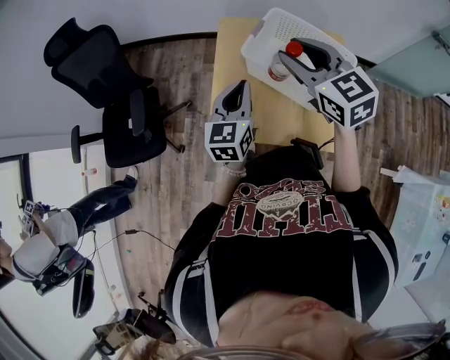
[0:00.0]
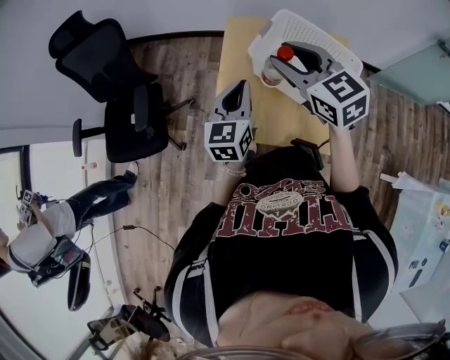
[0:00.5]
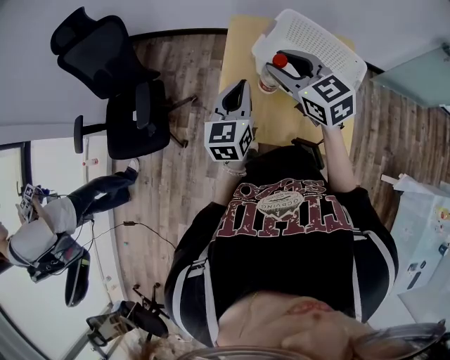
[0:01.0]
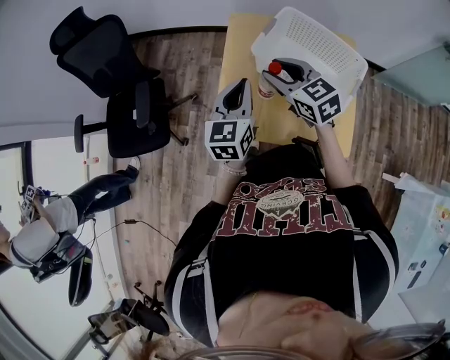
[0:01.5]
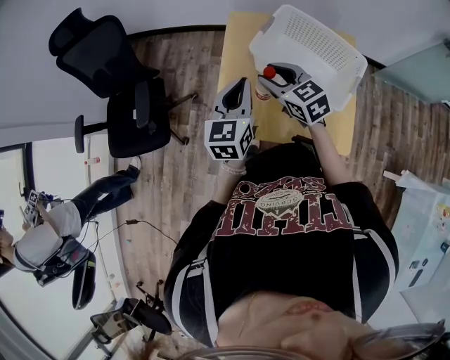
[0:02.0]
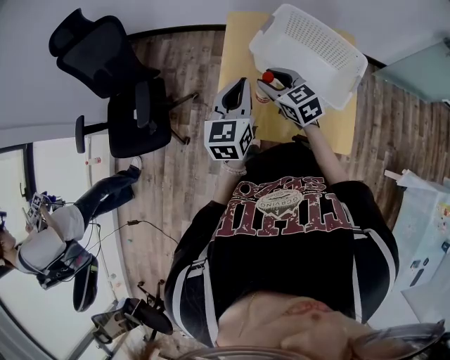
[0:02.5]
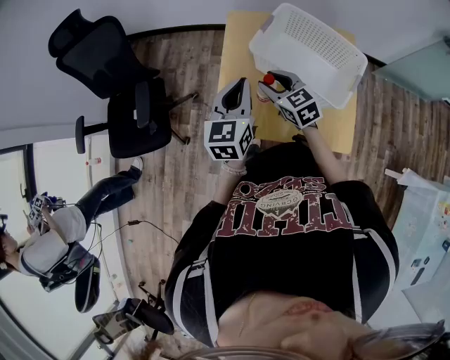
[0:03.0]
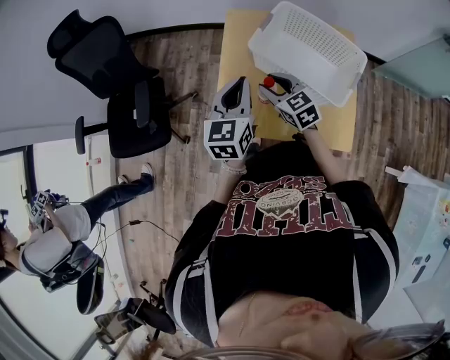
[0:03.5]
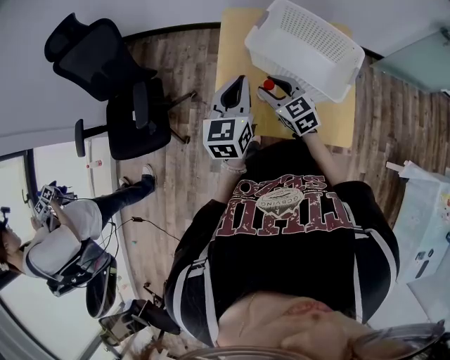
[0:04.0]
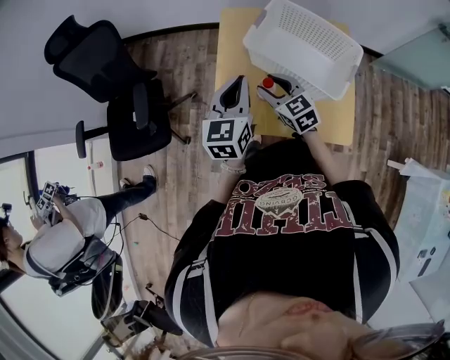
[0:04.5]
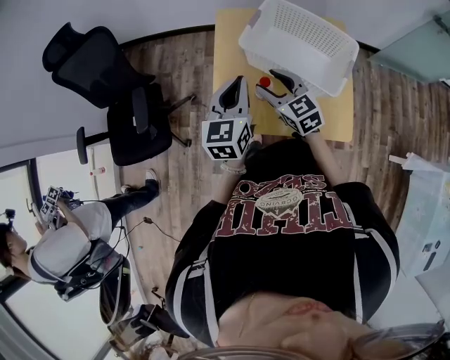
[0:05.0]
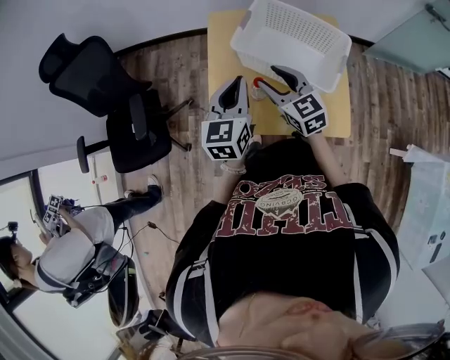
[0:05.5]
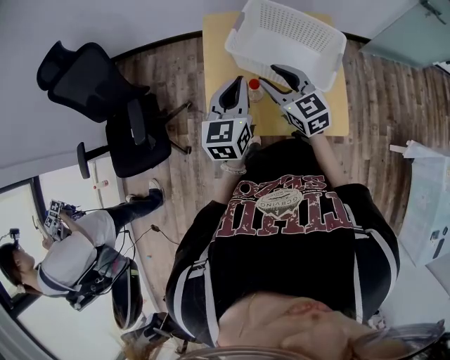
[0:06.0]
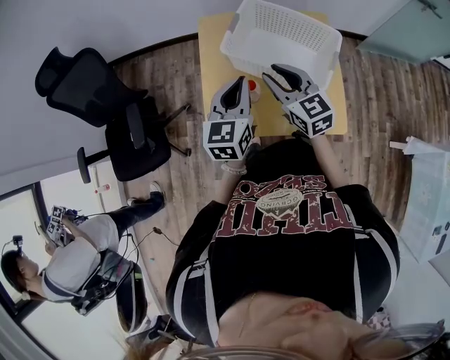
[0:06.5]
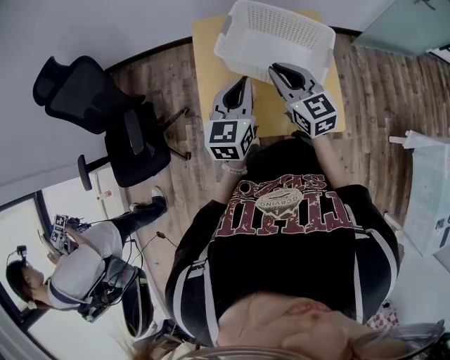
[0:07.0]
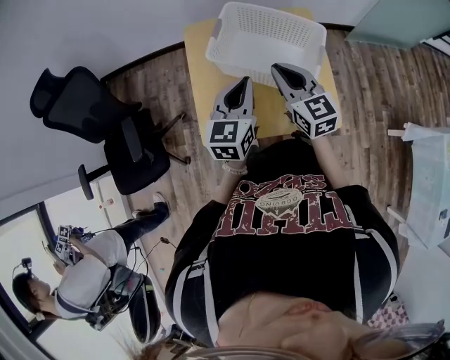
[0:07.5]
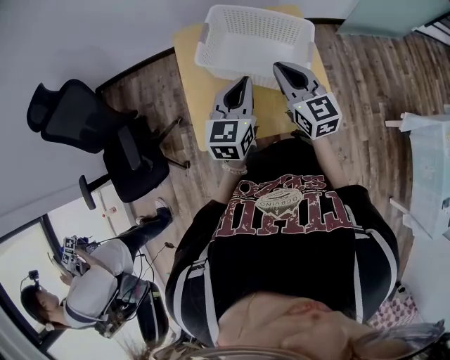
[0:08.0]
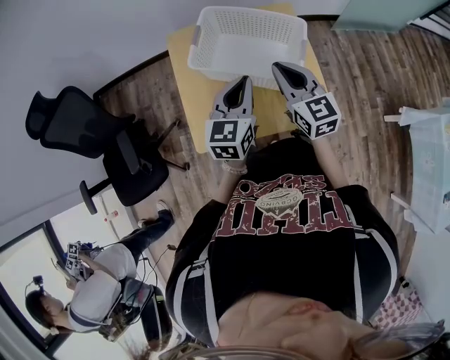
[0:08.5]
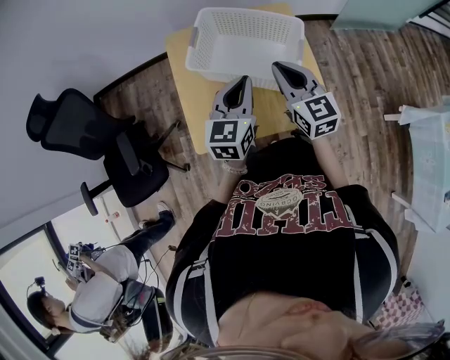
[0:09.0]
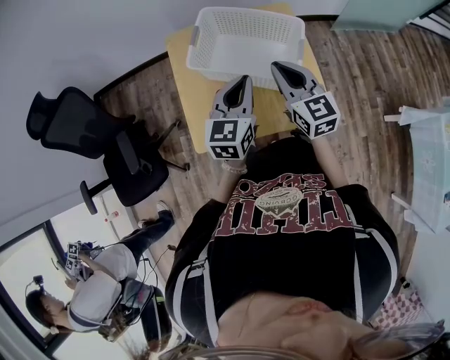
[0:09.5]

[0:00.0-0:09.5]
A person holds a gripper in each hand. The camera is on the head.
0:00.0 to 0:02.0: The right gripper is displaced downward by approximately 15 cm.
0:02.0 to 0:04.0: The right gripper is displaced downward by approximately 5 cm.
0:04.0 to 0:05.5: The right gripper shifts some 5 cm upward.
0:05.5 to 0:07.5: The two grippers go some 10 cm to the right. The right gripper closes up.
0:07.5 to 0:09.5: The two grippers go roughly 5 cm to the right.

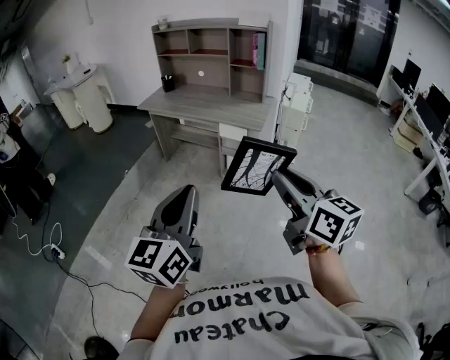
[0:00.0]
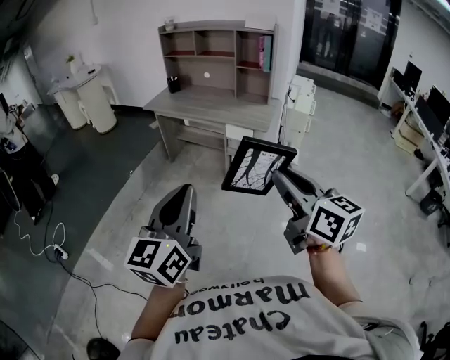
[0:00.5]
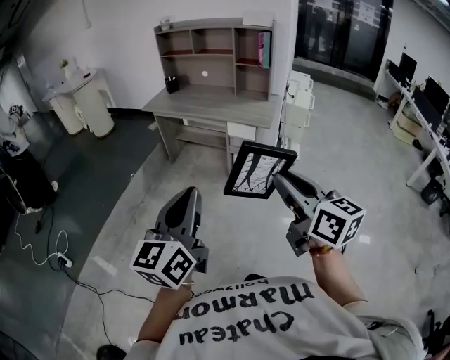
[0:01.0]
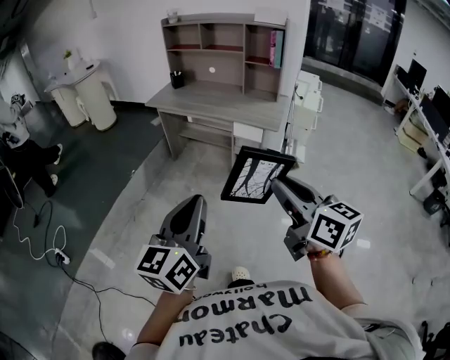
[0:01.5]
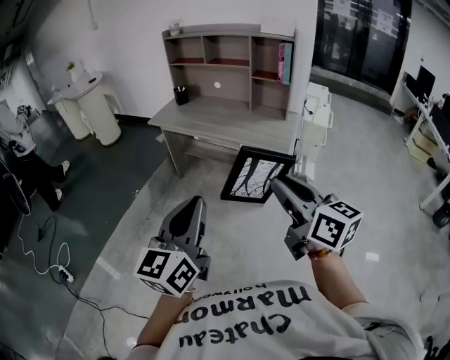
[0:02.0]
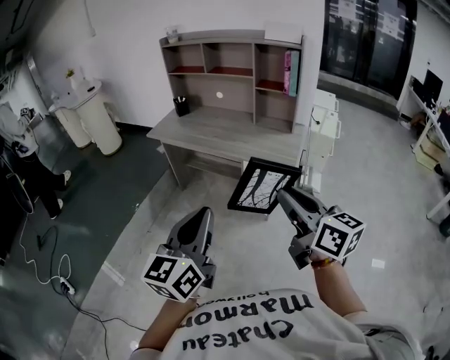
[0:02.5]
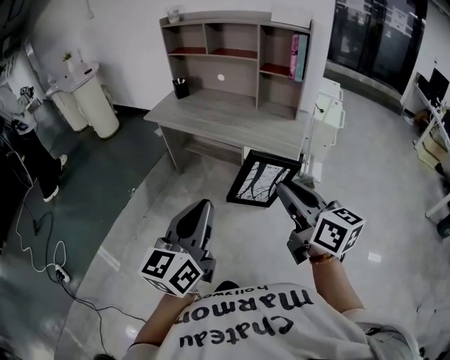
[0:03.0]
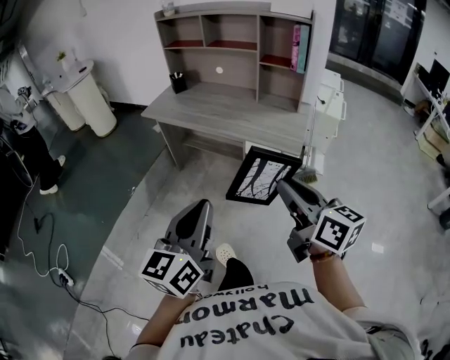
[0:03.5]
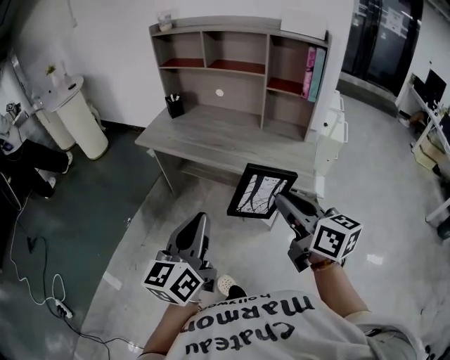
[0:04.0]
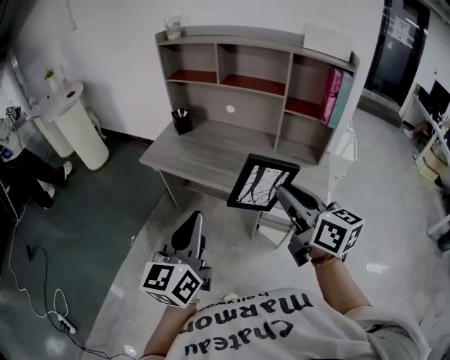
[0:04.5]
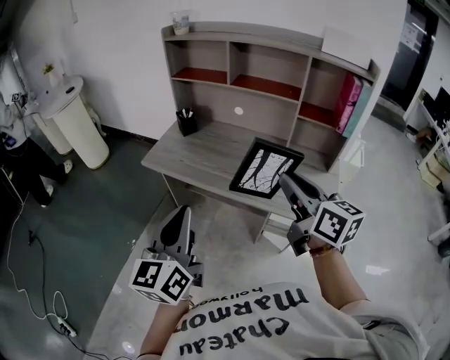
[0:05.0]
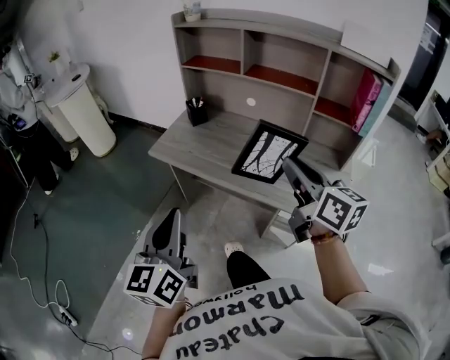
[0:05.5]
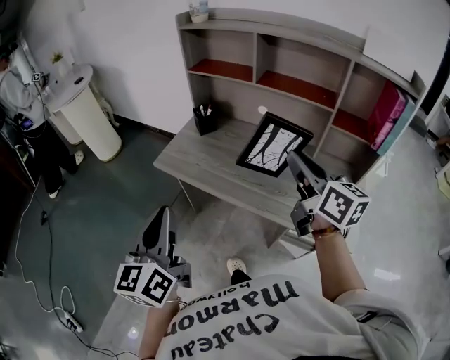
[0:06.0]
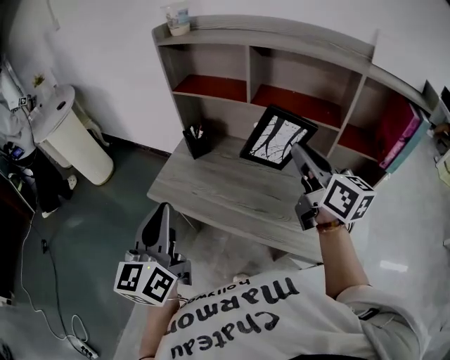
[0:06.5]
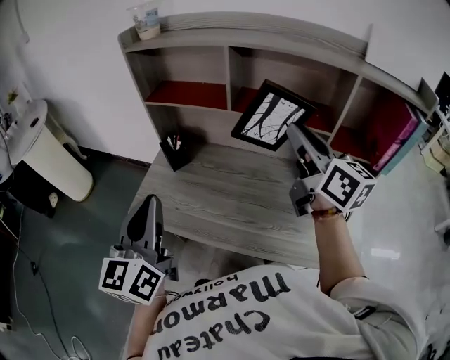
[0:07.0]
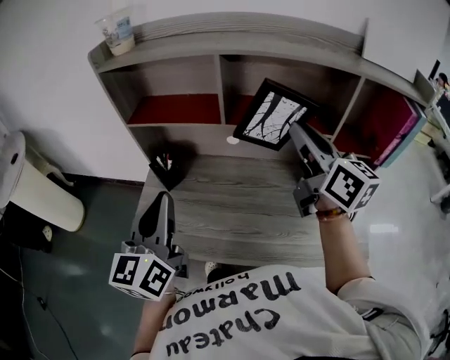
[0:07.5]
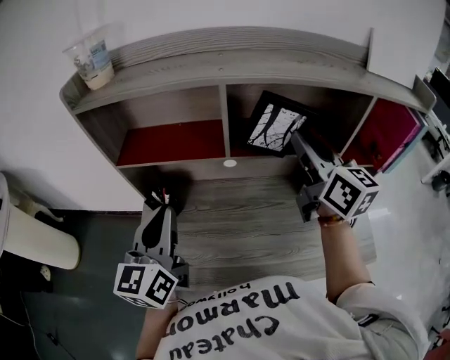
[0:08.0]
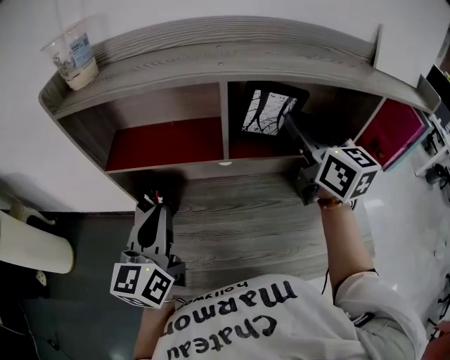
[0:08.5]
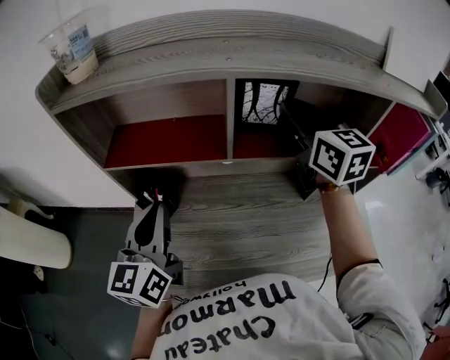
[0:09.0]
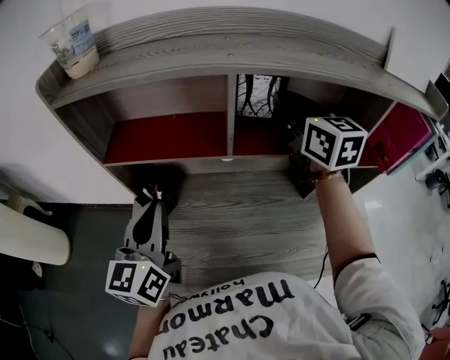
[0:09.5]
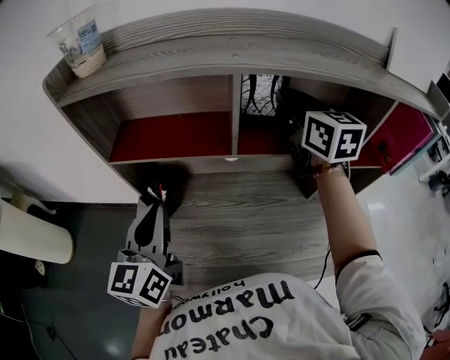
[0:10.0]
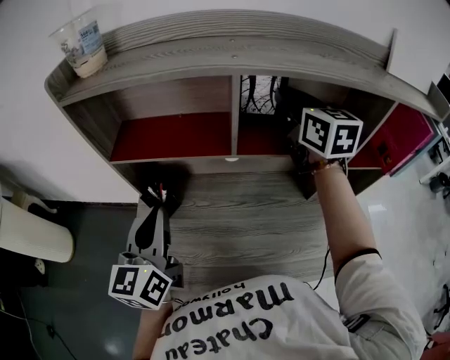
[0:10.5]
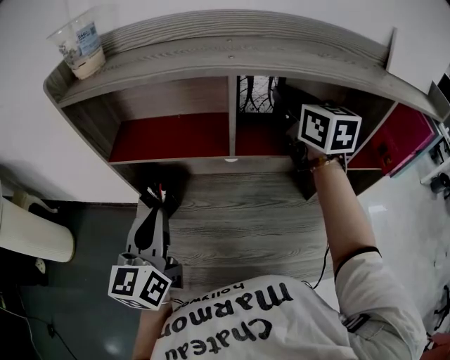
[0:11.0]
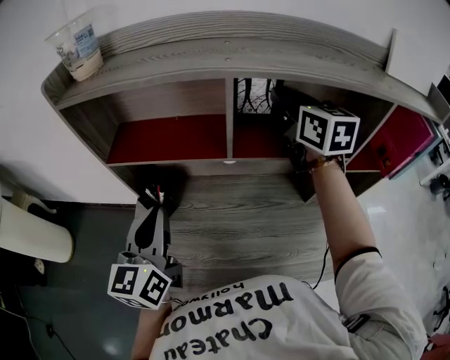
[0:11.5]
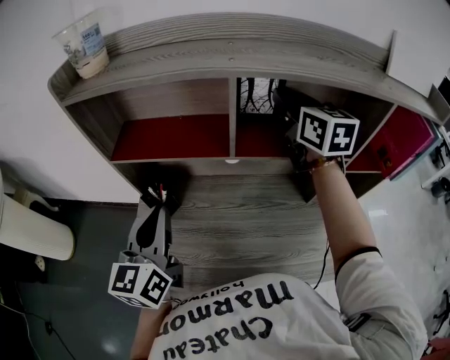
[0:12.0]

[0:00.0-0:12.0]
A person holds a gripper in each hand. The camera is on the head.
0:00.0 to 0:02.0: The right gripper goes about 5 cm forward.
0:02.0 to 0:04.0: The left gripper shifts by approximately 5 cm, while the right gripper shifts by approximately 5 cm.
0:04.0 to 0:06.0: The left gripper travels to the left by roughly 10 cm, and changes its angle by approximately 20 degrees, while the right gripper is displaced forward and upward by roughly 15 cm.
0:06.0 to 0:08.0: The left gripper moves some 10 cm backward and comes back, and rotates roughly 30 degrees.
0:08.0 to 0:10.0: The right gripper heads forward, covering approximately 10 cm.
0:10.0 to 0:12.0: The grippers make only small movements.

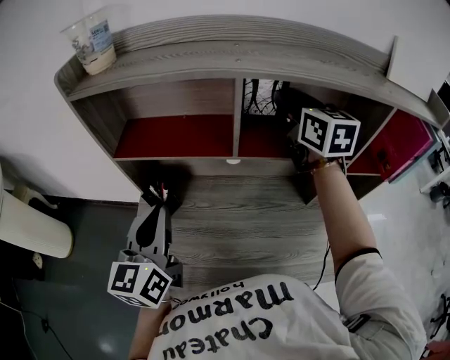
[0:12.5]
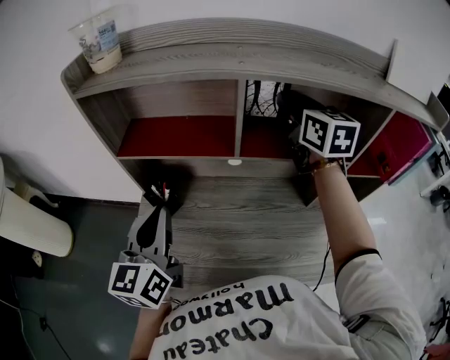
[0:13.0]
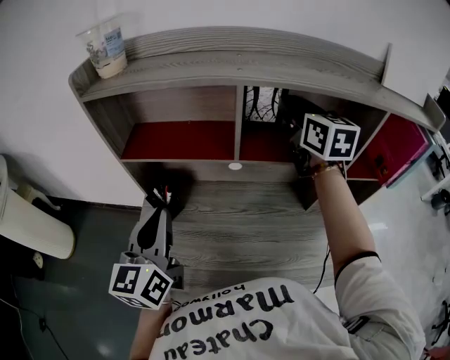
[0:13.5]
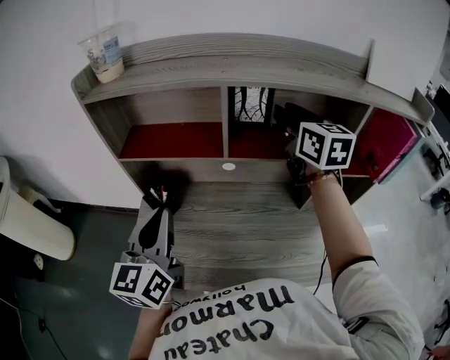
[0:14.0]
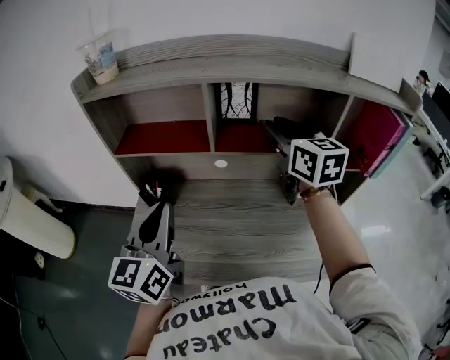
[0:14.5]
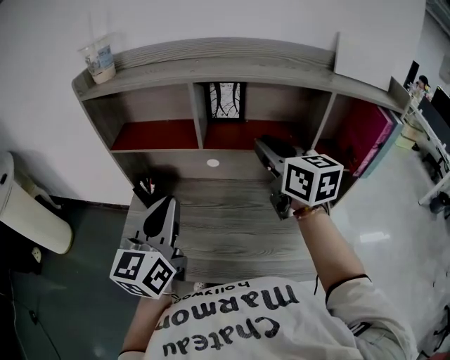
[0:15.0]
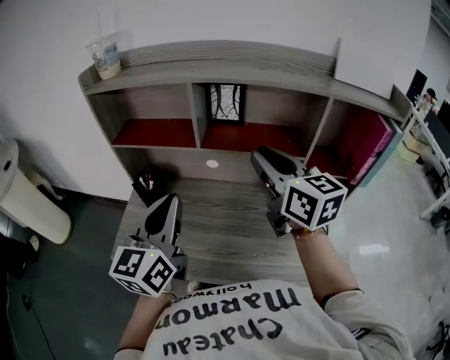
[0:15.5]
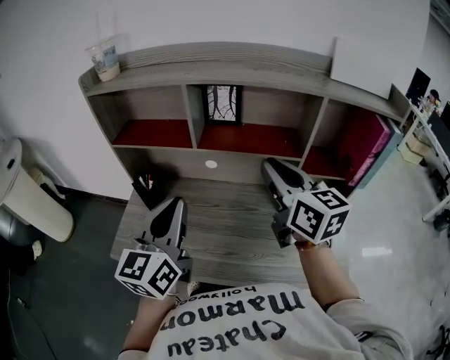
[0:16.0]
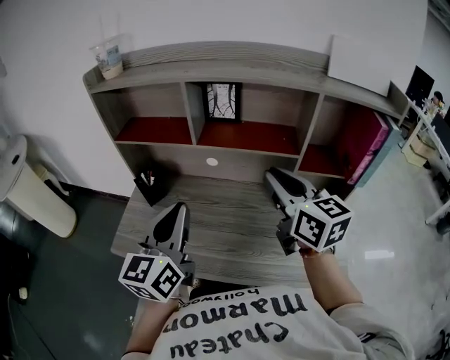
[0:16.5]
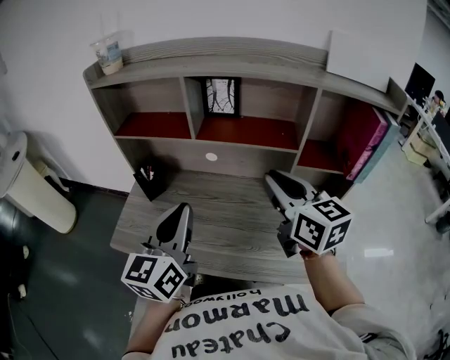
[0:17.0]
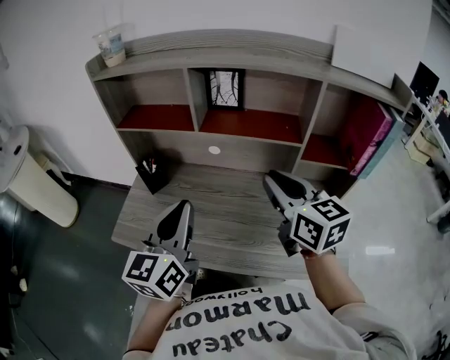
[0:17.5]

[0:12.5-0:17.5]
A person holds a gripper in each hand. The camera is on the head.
0:12.5 to 0:15.0: The right gripper heads backward, covering approximately 15 cm. Meanwhile the left gripper heads to the right and backward, covering approximately 15 cm.
0:15.0 to 0:17.5: The right gripper is displaced backward by roughly 10 cm, while the left gripper heads backward and to the right, covering approximately 10 cm.
